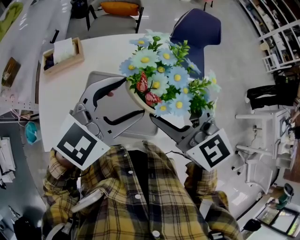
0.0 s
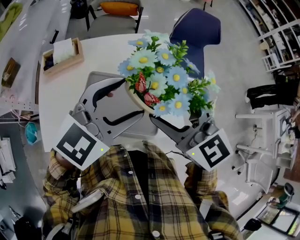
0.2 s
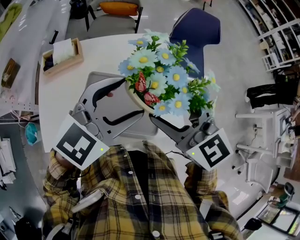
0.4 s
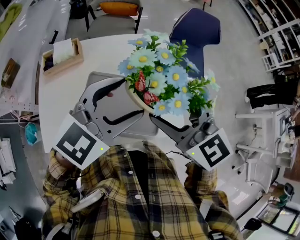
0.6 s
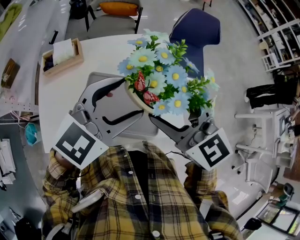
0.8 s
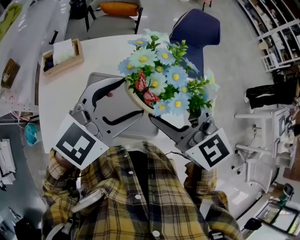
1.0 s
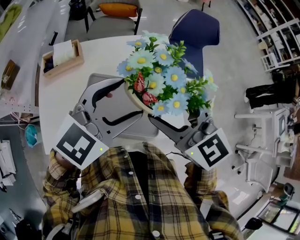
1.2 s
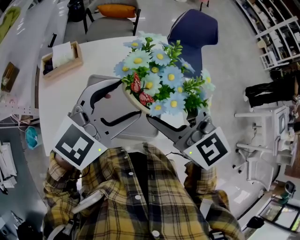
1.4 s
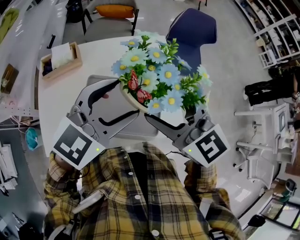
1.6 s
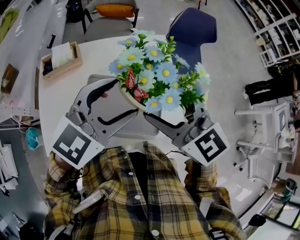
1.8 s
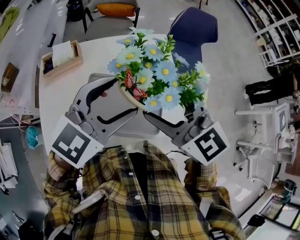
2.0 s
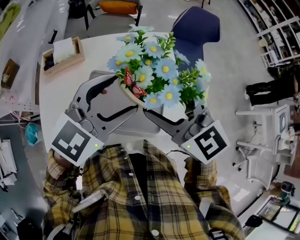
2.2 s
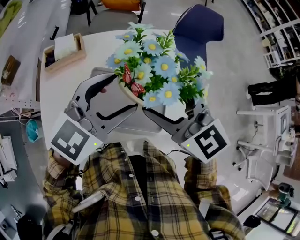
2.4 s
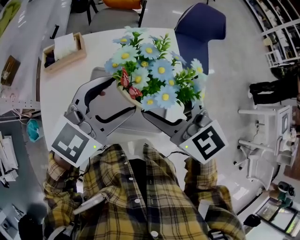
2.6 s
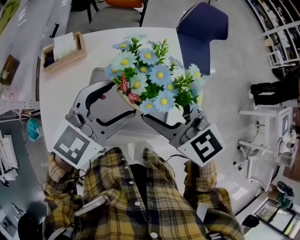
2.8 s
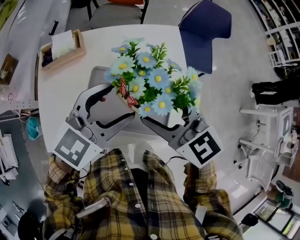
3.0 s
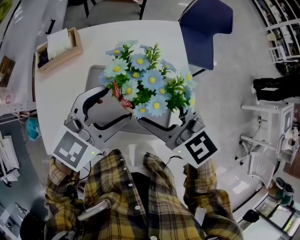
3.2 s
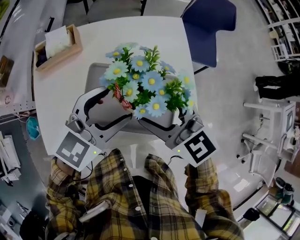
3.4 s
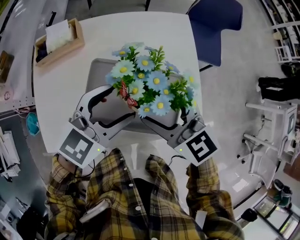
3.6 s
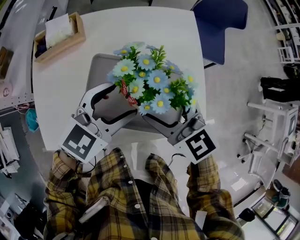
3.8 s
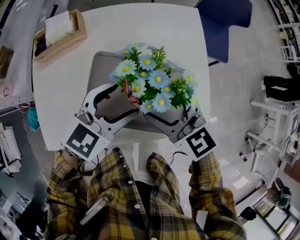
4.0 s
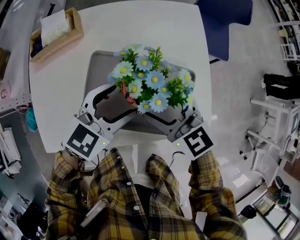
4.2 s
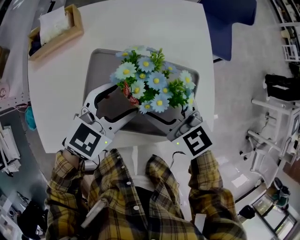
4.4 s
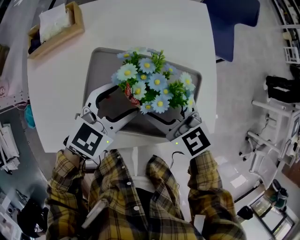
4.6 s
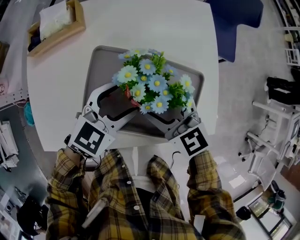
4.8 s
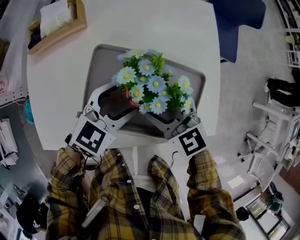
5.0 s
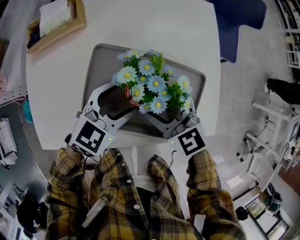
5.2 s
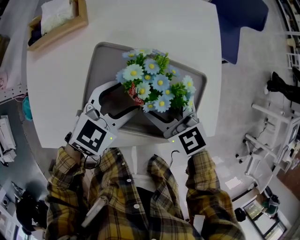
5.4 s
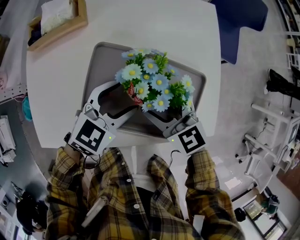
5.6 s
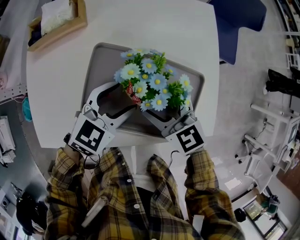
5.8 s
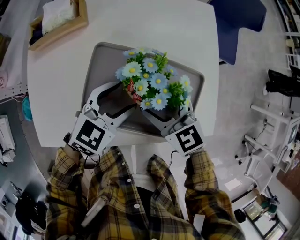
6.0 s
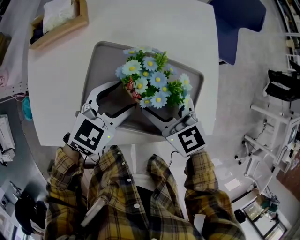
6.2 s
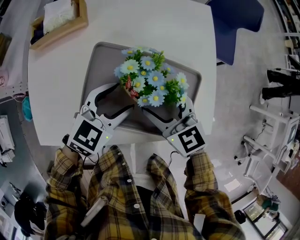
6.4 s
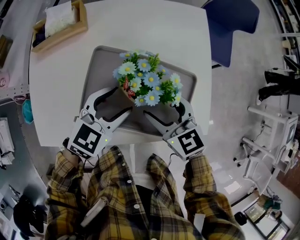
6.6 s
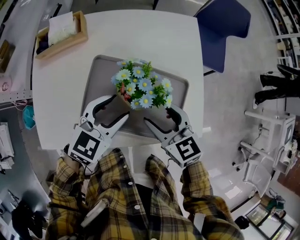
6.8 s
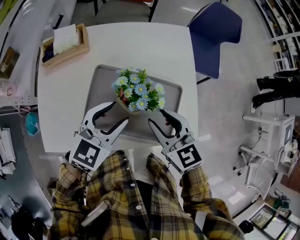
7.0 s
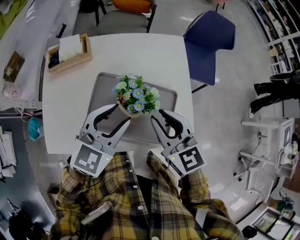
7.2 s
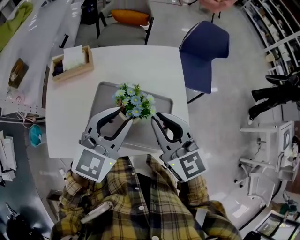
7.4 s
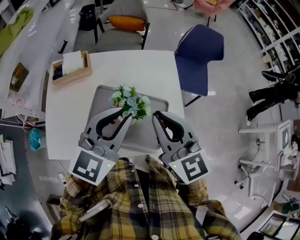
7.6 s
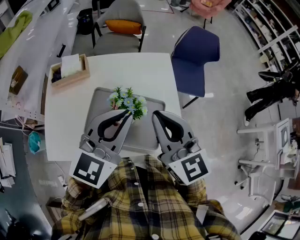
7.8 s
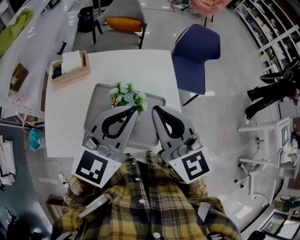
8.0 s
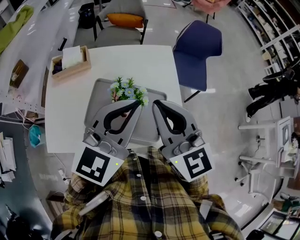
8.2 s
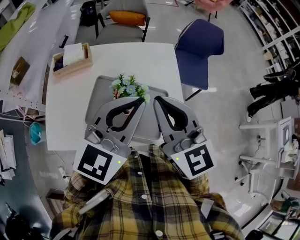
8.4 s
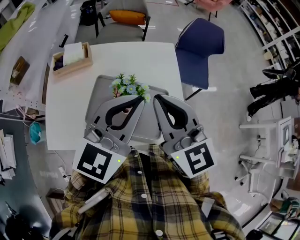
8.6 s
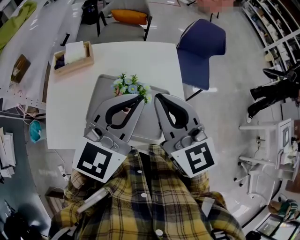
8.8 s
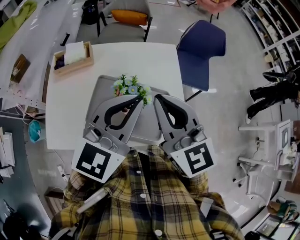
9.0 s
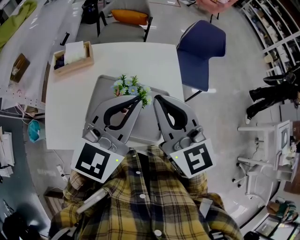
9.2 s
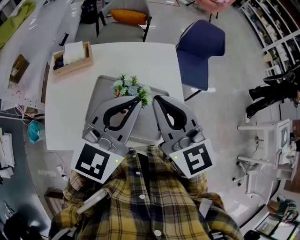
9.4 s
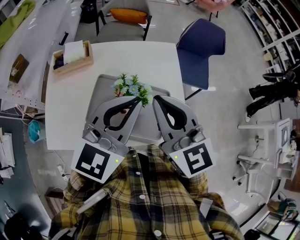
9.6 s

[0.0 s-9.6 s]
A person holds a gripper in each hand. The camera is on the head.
0.0 to 1.6 s: The two grippers keep their place.
1.6 to 3.2 s: The grippers move only a little.
3.2 to 6.4 s: The grippers make only small movements.
6.4 to 8.0 s: The two grippers go approximately 25 cm upward. The right gripper turns by approximately 30 degrees, and closes up. Meanwhile the left gripper changes its angle by roughly 30 degrees, and closes.
8.0 to 9.6 s: The grippers make only small movements.

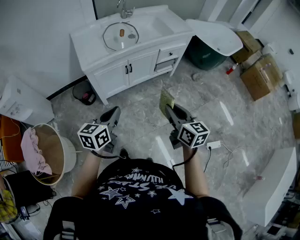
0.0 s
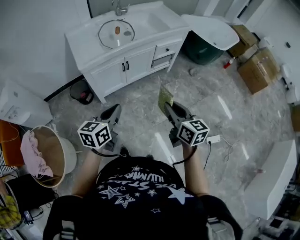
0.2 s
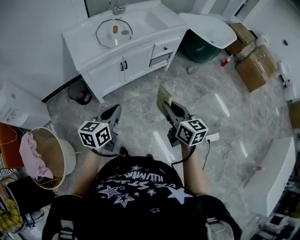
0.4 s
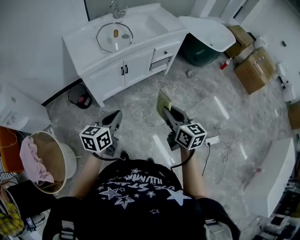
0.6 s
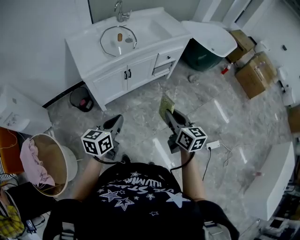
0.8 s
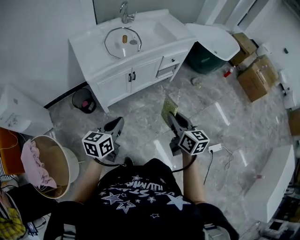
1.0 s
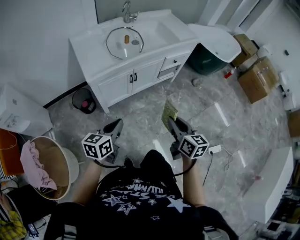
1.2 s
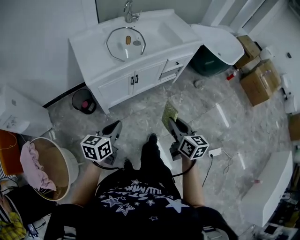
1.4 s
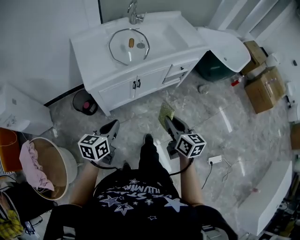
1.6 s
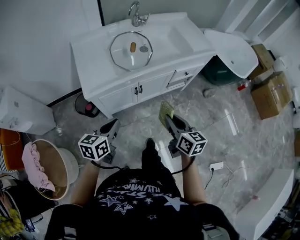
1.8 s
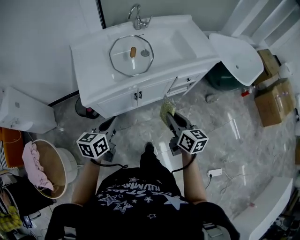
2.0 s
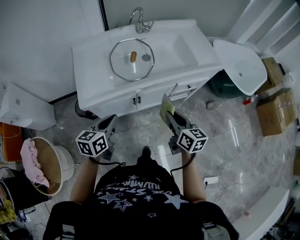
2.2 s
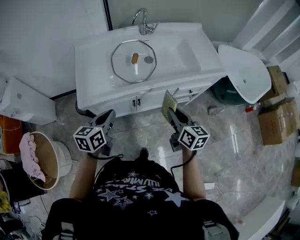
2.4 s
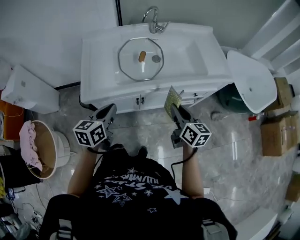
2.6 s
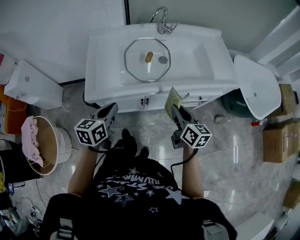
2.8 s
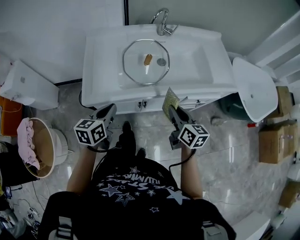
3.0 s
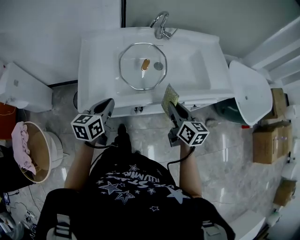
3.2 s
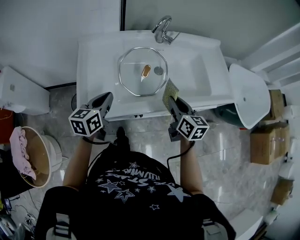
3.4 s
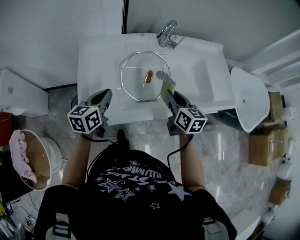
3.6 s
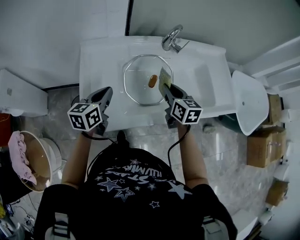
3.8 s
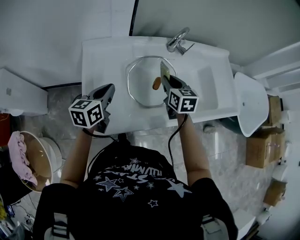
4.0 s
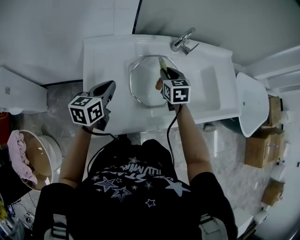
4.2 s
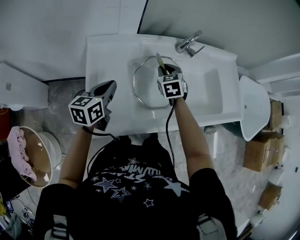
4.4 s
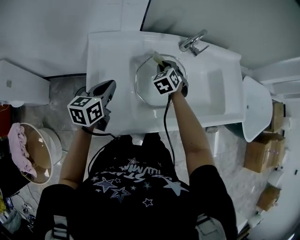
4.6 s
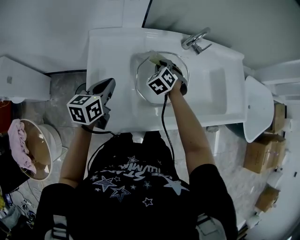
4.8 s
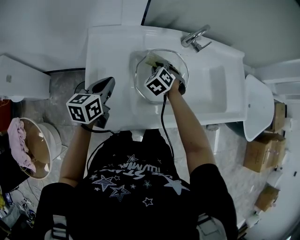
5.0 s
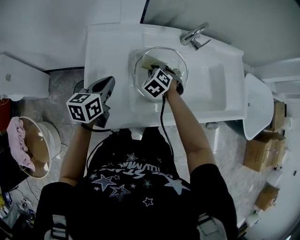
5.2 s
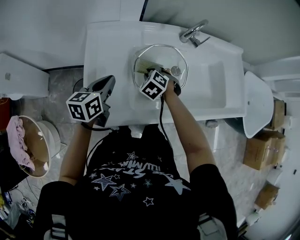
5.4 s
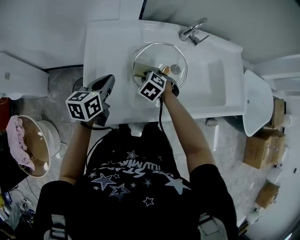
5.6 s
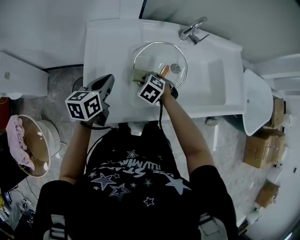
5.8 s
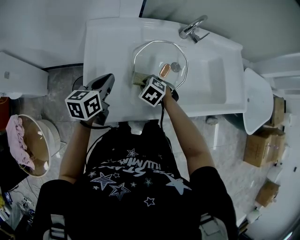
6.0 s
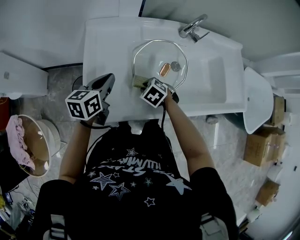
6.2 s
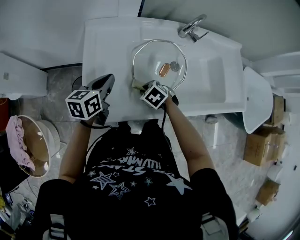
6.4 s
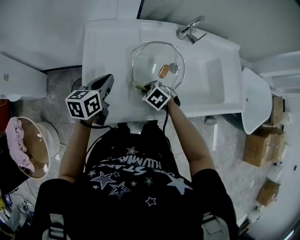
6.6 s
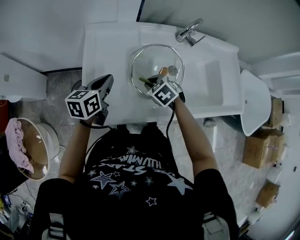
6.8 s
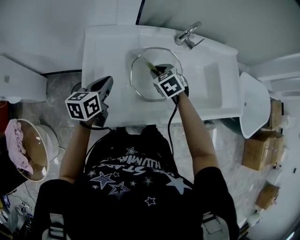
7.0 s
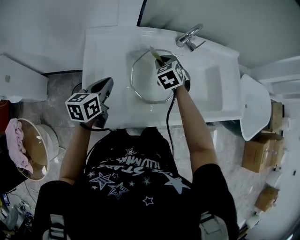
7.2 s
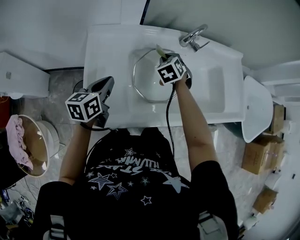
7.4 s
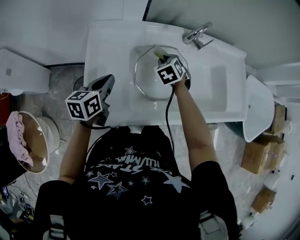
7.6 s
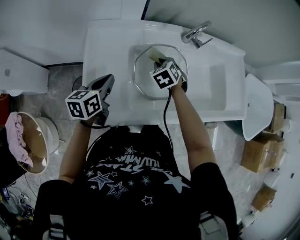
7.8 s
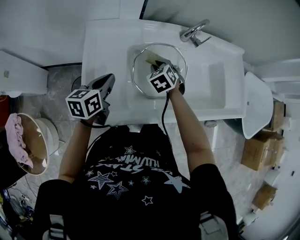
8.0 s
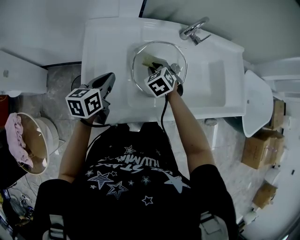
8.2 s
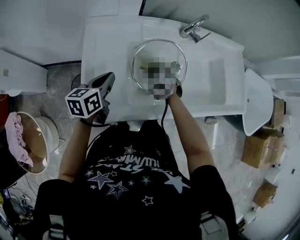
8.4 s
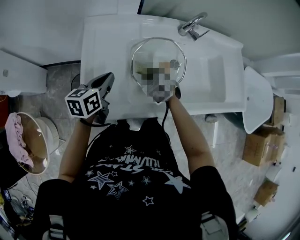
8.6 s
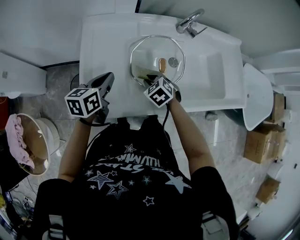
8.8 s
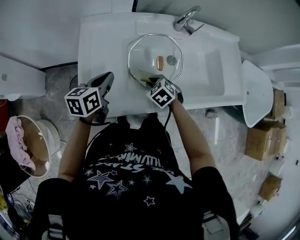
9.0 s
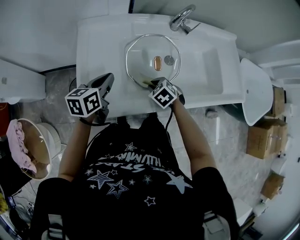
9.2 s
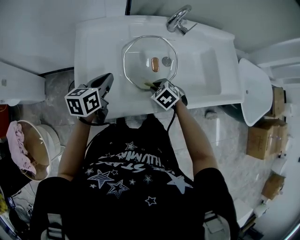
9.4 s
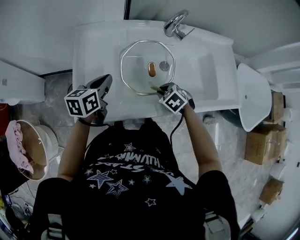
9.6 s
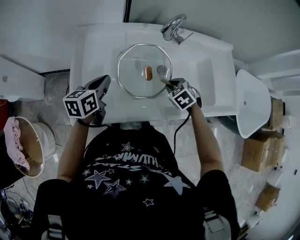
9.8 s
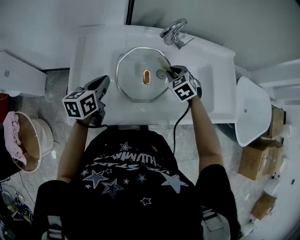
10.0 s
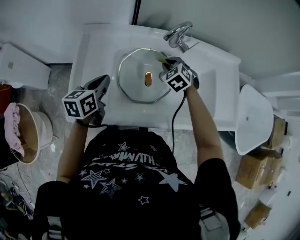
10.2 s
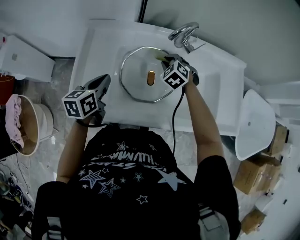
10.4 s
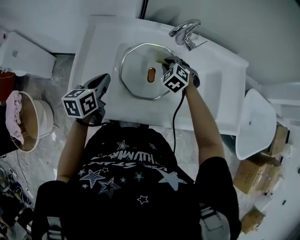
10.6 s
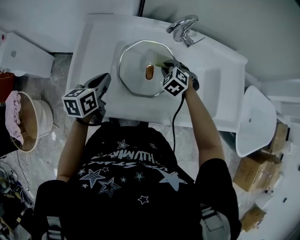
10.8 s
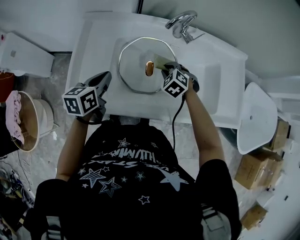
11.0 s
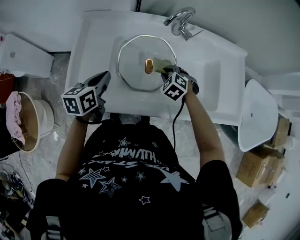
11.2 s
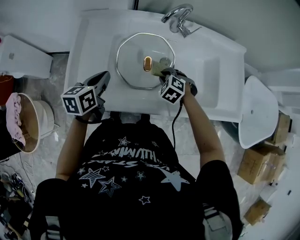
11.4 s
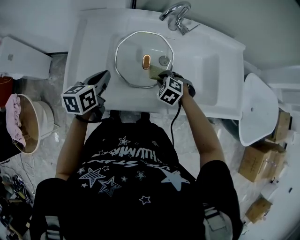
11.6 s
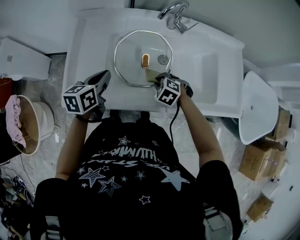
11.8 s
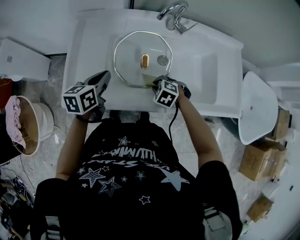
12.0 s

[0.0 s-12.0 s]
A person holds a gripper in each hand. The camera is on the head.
0.0 to 1.6 s: The left gripper heads forward, to the left and downward, covering roughly 15 cm, while the right gripper is displaced forward and to the left by roughly 20 cm.
1.6 to 3.0 s: Both grippers move forward, approximately 25 cm. The left gripper rotates about 20 degrees.
3.0 to 4.4 s: The two grippers go approximately 35 cm forward and to the left. The right gripper rolls counterclockwise, seen from behind, by roughly 40 degrees.
4.4 to 6.0 s: The right gripper heads backward and downward, covering about 20 cm, and turns by approximately 40 degrees.
6.0 to 7.6 s: The right gripper changes place by about 20 cm, and rotates roughly 30 degrees.
7.6 to 9.0 s: The right gripper is displaced backward and downward by some 20 cm.
9.0 to 10.4 s: The right gripper goes about 20 cm forward, to the right and upward, and turns by roughly 20 degrees. Meanwhile the left gripper shifts about 5 cm to the right.
10.4 to 12.0 s: The right gripper travels backward and downward by approximately 20 cm, and rotates roughly 20 degrees; the left gripper changes place by some 5 cm.

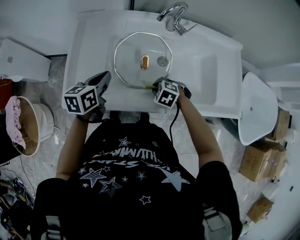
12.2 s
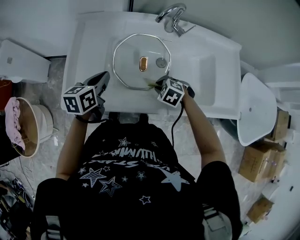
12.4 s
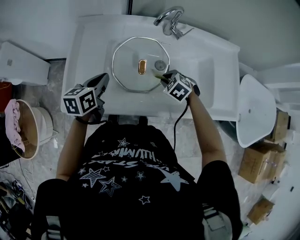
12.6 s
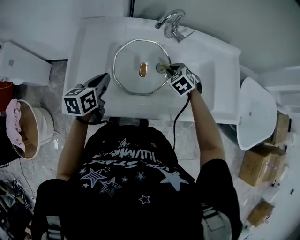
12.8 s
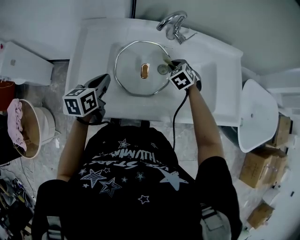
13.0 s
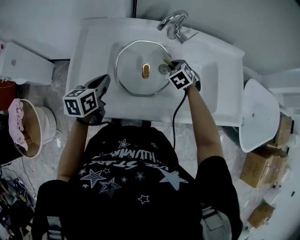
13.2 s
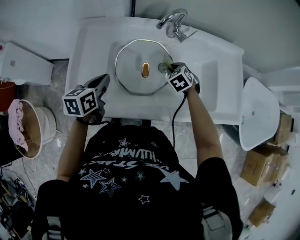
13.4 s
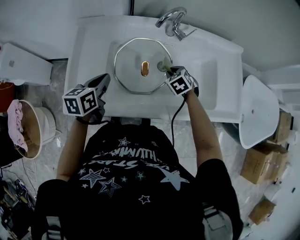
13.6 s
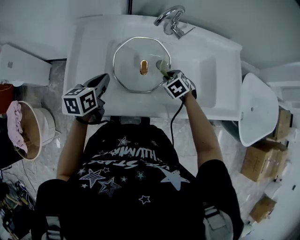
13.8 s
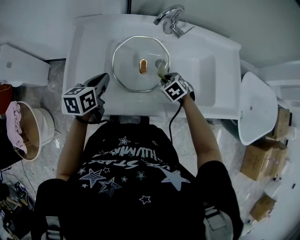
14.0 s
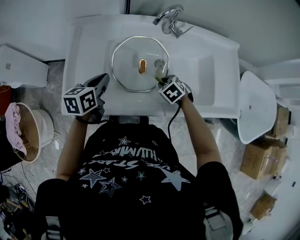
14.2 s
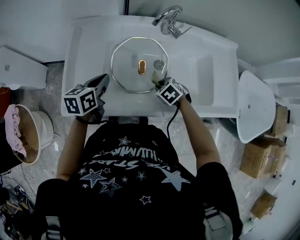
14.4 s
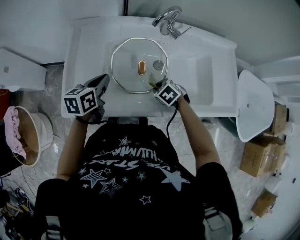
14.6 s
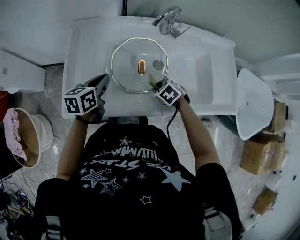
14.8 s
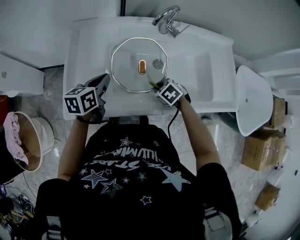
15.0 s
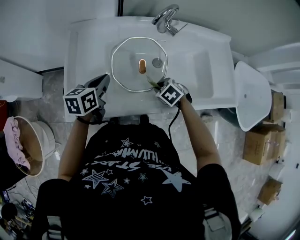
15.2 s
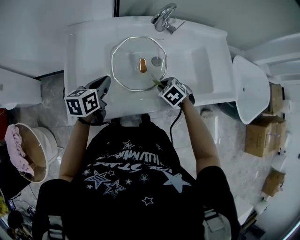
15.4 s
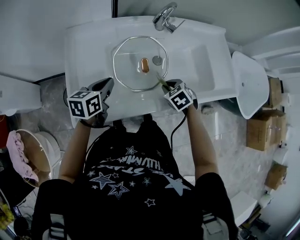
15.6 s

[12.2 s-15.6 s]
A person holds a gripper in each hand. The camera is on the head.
12.2 to 13.8 s: The right gripper shifts approximately 10 cm forward and to the right, and changes its angle by roughly 30 degrees.
13.8 to 15.6 s: The right gripper moves some 10 cm.
